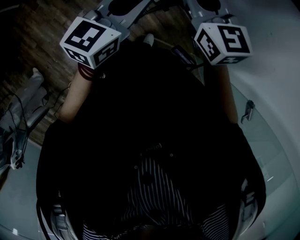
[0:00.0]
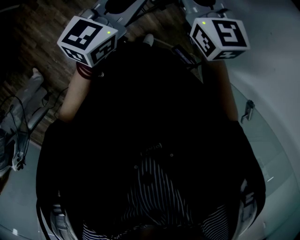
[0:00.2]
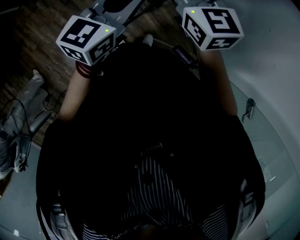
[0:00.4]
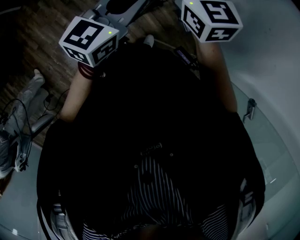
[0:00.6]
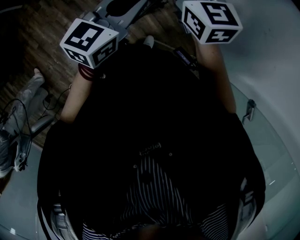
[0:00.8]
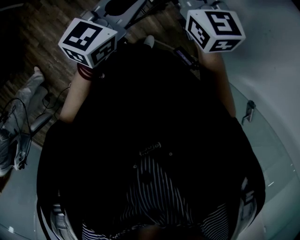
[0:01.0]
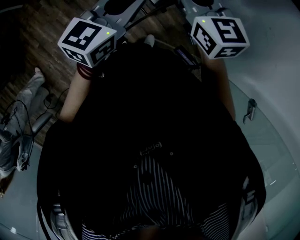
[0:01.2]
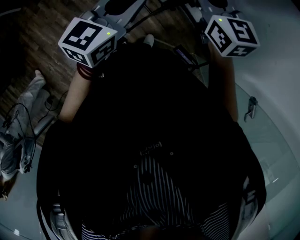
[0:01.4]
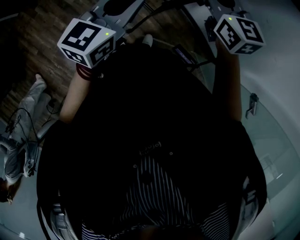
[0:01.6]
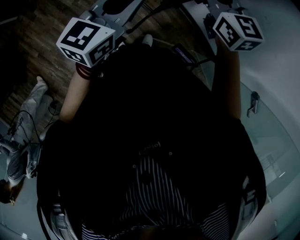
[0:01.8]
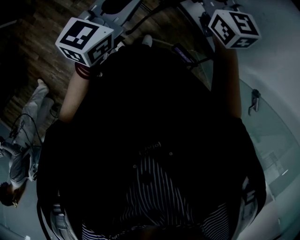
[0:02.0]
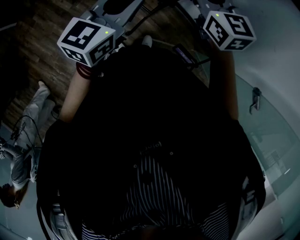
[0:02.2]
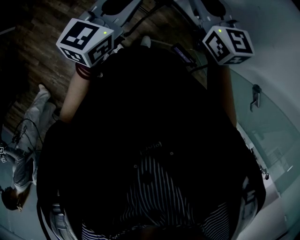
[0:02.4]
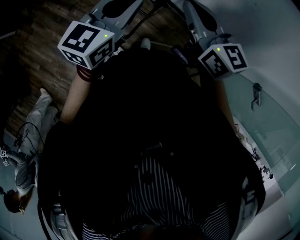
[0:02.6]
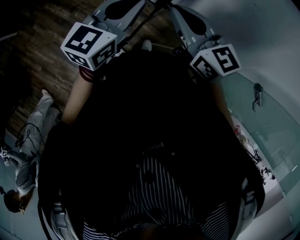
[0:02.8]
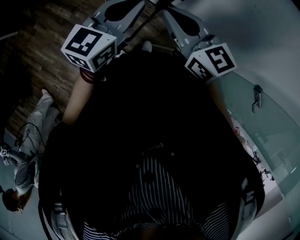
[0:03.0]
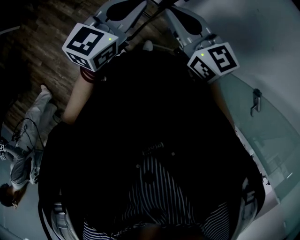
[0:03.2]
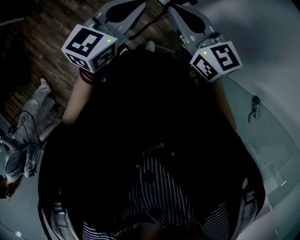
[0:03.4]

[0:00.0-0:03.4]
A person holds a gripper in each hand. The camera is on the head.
0.0 to 1.6 s: The right gripper is displaced to the right and forward by roughly 10 cm.
1.6 to 3.4 s: The right gripper travels backward by about 10 cm.

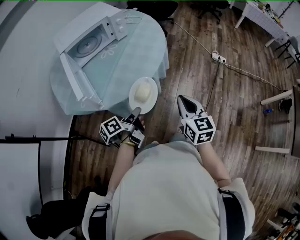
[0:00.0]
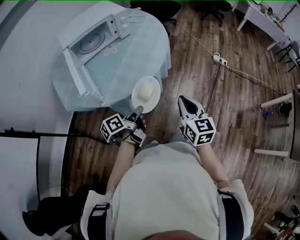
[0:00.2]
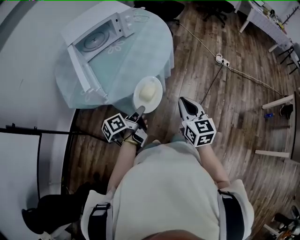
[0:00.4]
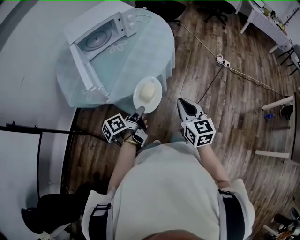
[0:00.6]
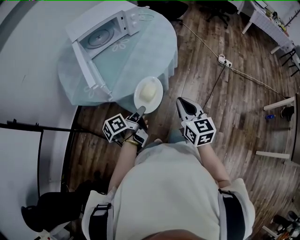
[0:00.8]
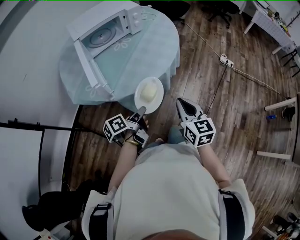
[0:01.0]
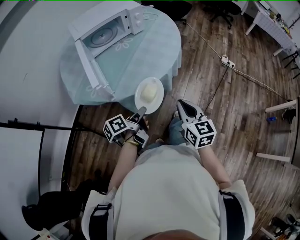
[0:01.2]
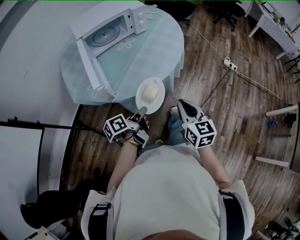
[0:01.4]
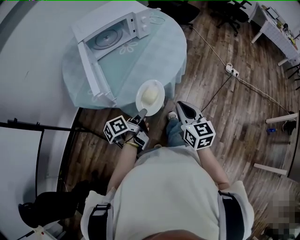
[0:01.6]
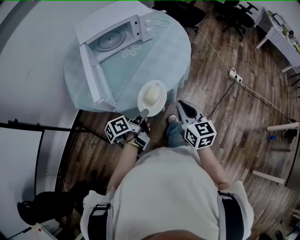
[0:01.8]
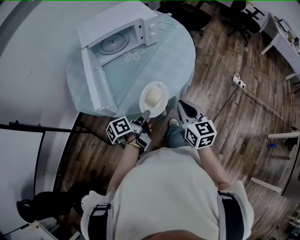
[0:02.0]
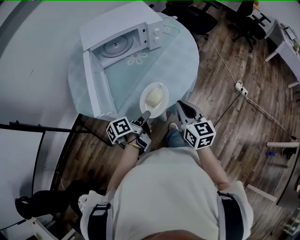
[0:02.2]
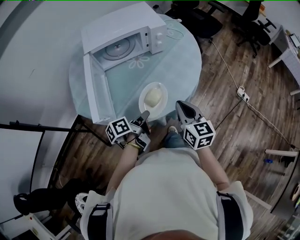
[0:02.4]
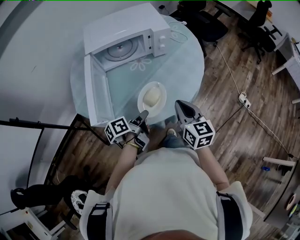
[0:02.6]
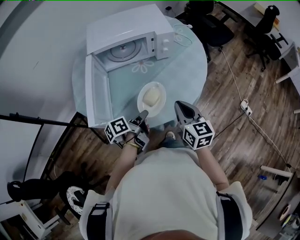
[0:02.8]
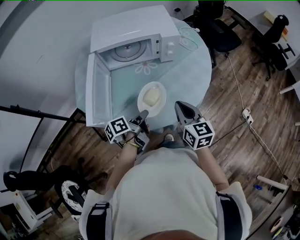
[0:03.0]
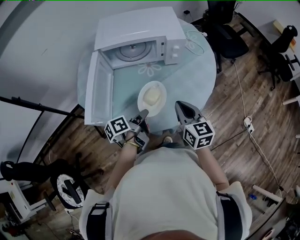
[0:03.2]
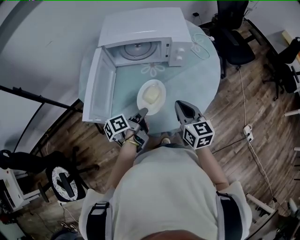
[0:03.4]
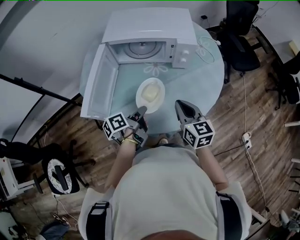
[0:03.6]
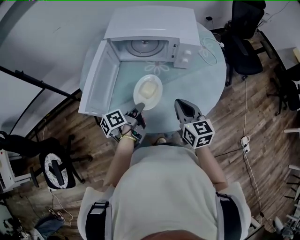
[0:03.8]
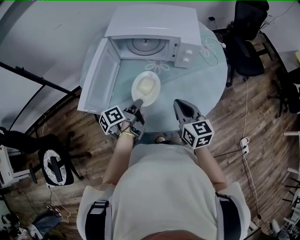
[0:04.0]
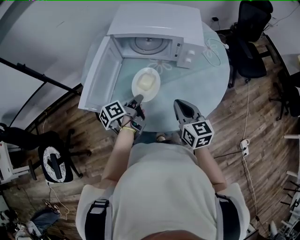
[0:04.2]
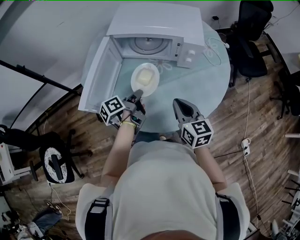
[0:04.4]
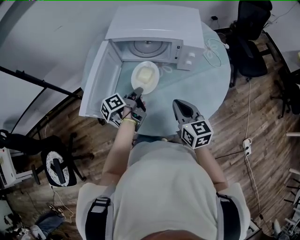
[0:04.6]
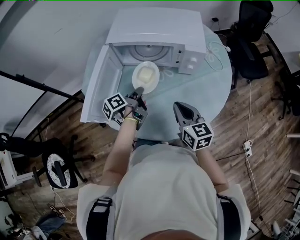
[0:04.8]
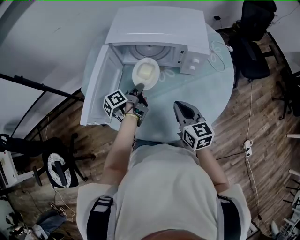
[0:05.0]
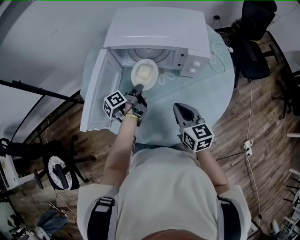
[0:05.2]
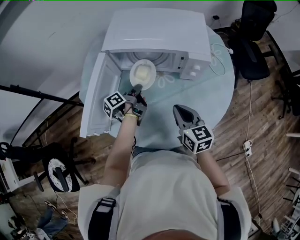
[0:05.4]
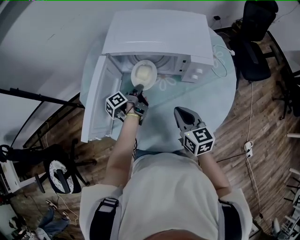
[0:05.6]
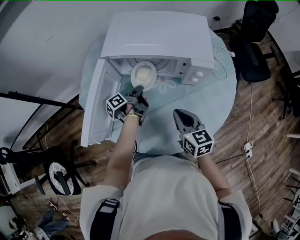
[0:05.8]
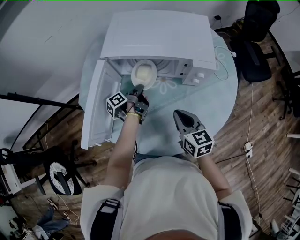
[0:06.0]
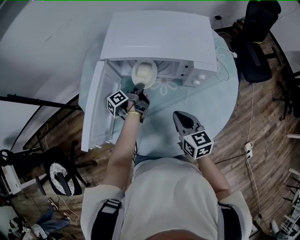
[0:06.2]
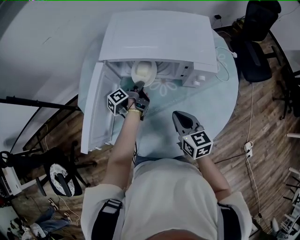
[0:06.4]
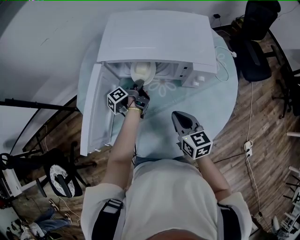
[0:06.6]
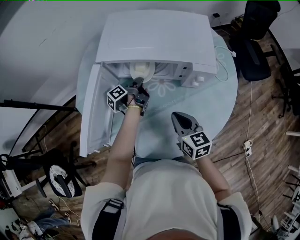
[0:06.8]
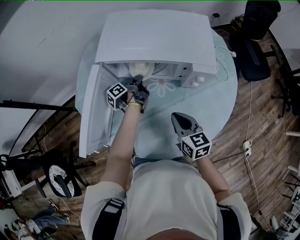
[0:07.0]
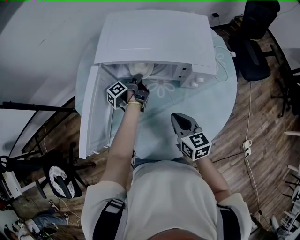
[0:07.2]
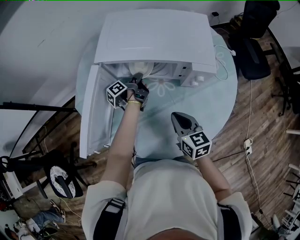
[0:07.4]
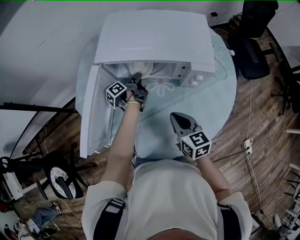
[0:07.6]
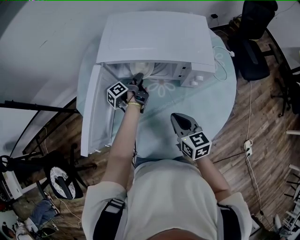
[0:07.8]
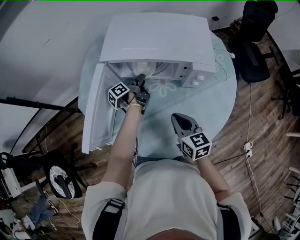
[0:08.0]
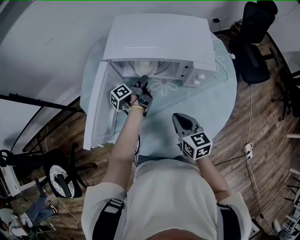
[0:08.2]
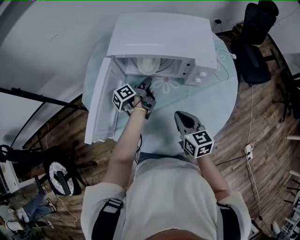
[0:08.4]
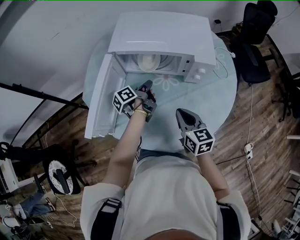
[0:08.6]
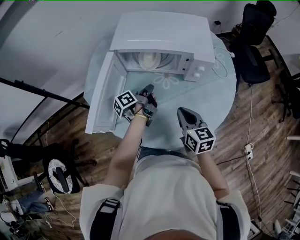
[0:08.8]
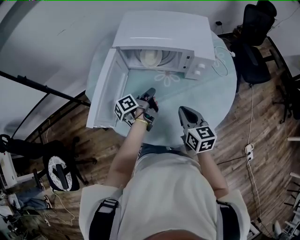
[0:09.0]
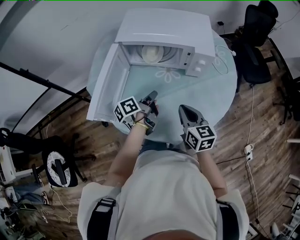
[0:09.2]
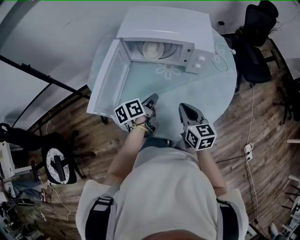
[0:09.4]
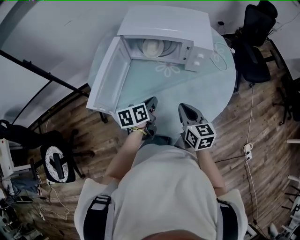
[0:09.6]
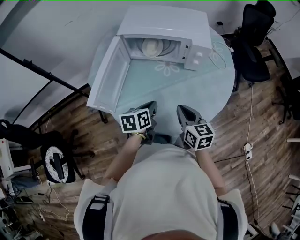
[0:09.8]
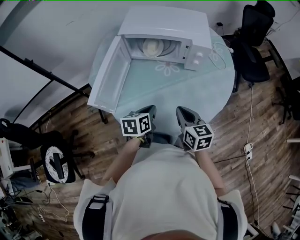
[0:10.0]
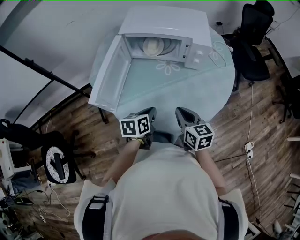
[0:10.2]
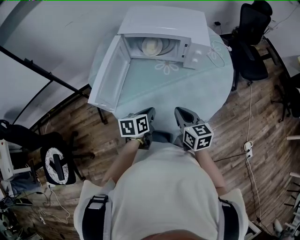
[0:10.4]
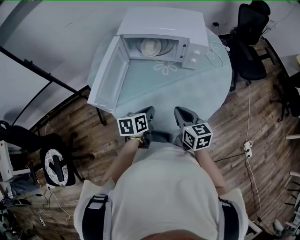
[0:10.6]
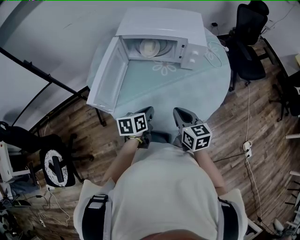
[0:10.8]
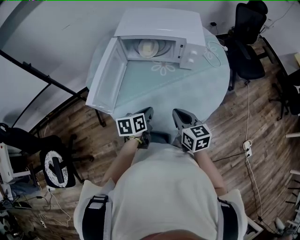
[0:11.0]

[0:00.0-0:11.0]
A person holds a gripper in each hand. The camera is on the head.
0.0 to 1.6 s: The right gripper ends up about 10 cm from where it was.
1.6 to 3.2 s: The right gripper changes place by some 30 cm, and swivels roughly 30 degrees.
3.2 to 4.8 s: The right gripper moves about 10 cm.
4.8 to 6.2 s: The right gripper changes place by approximately 10 cm.
7.8 to 9.4 s: The right gripper ends up roughly 10 cm from where it was.
9.4 to 11.0 s: The right gripper moves approximately 5 cm.

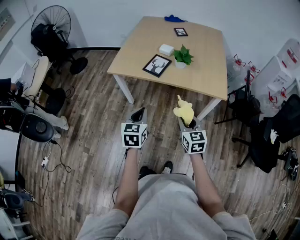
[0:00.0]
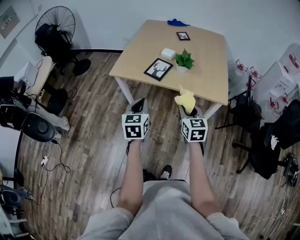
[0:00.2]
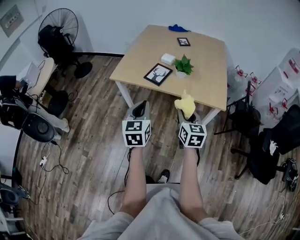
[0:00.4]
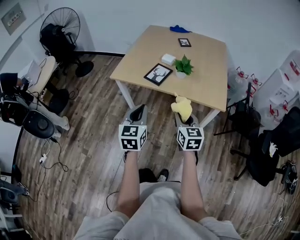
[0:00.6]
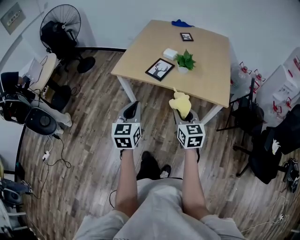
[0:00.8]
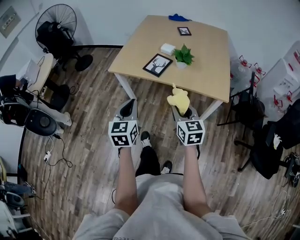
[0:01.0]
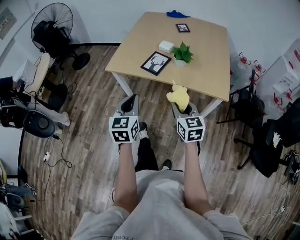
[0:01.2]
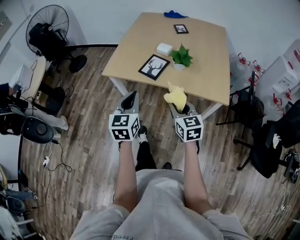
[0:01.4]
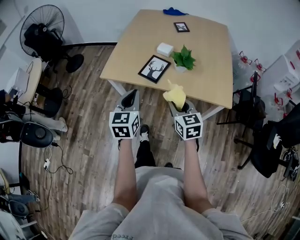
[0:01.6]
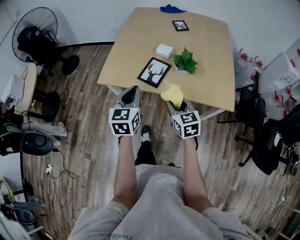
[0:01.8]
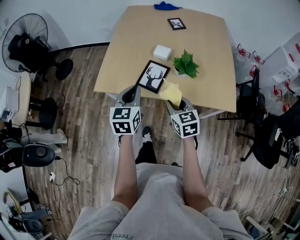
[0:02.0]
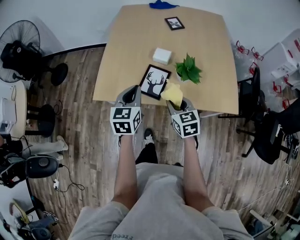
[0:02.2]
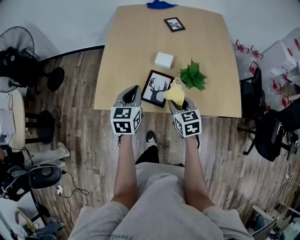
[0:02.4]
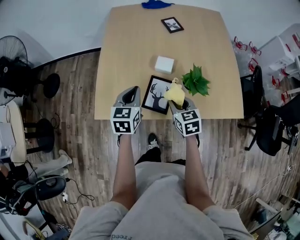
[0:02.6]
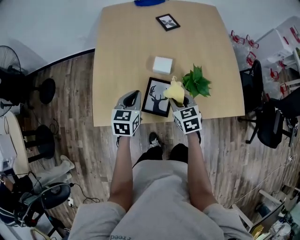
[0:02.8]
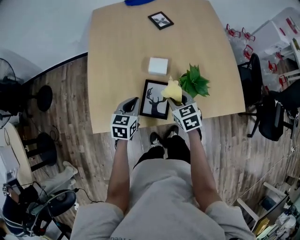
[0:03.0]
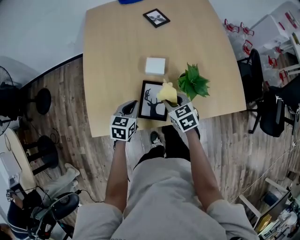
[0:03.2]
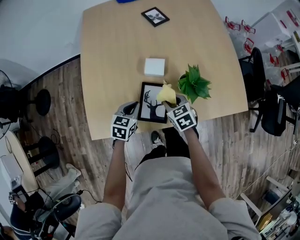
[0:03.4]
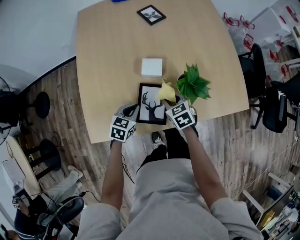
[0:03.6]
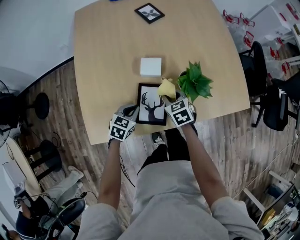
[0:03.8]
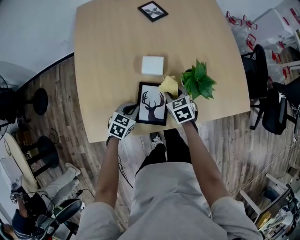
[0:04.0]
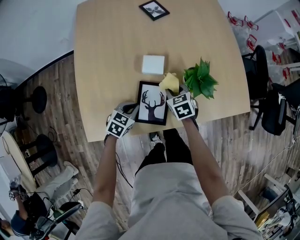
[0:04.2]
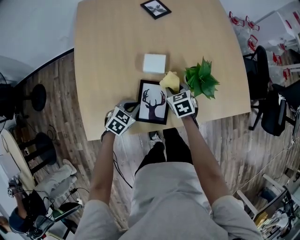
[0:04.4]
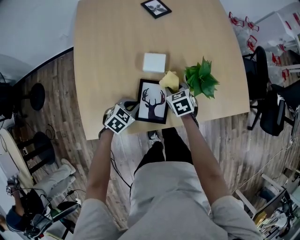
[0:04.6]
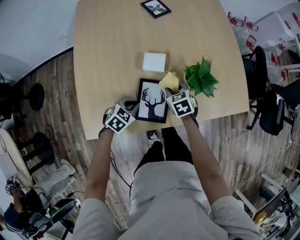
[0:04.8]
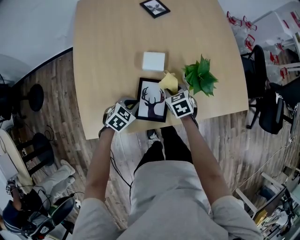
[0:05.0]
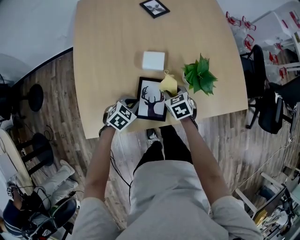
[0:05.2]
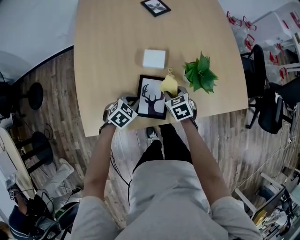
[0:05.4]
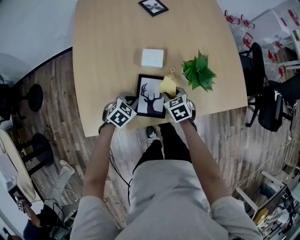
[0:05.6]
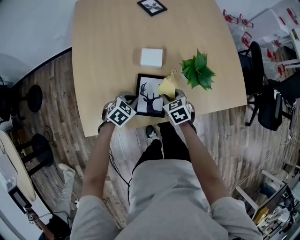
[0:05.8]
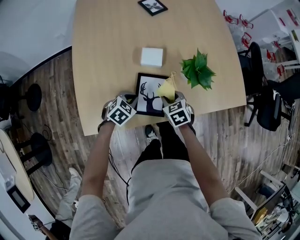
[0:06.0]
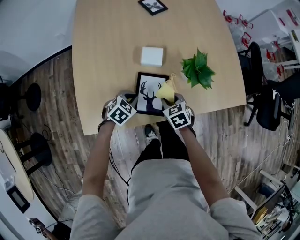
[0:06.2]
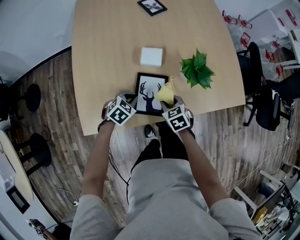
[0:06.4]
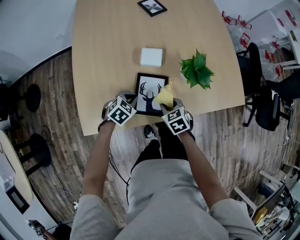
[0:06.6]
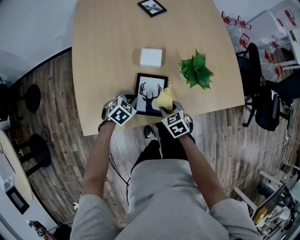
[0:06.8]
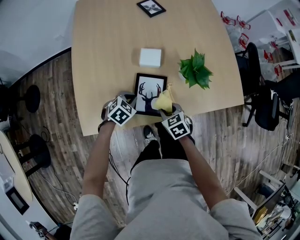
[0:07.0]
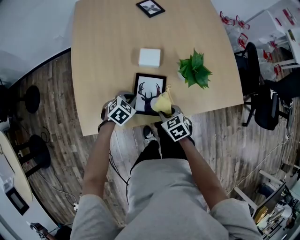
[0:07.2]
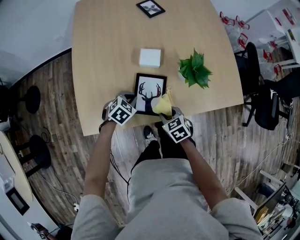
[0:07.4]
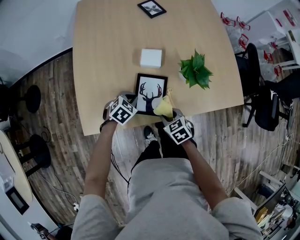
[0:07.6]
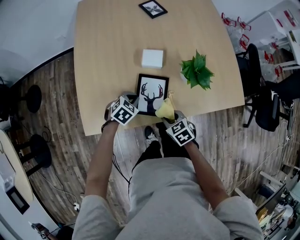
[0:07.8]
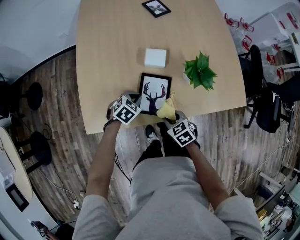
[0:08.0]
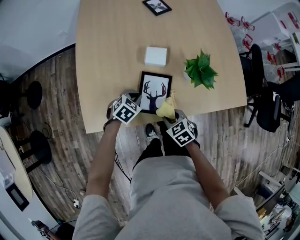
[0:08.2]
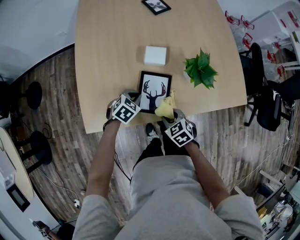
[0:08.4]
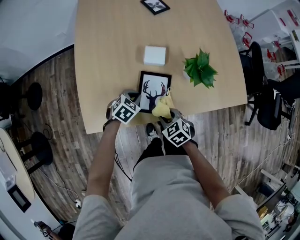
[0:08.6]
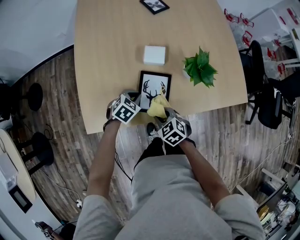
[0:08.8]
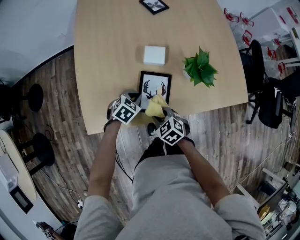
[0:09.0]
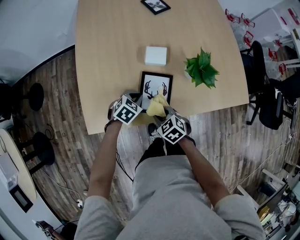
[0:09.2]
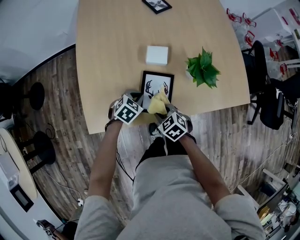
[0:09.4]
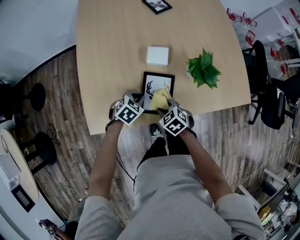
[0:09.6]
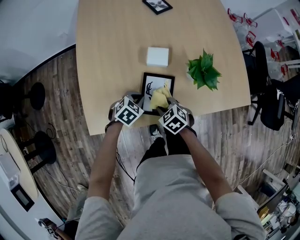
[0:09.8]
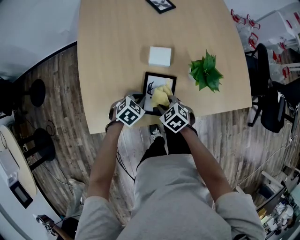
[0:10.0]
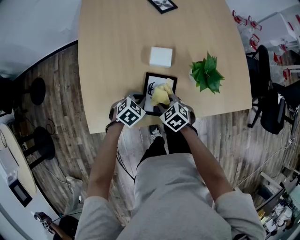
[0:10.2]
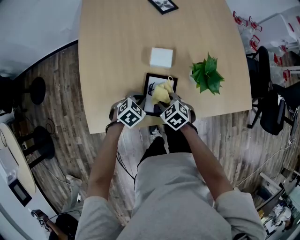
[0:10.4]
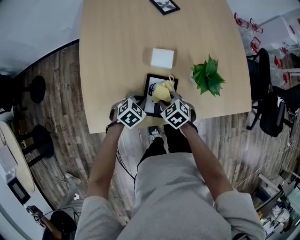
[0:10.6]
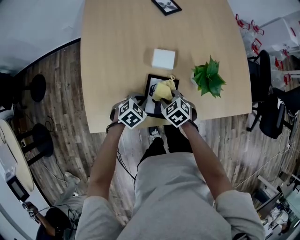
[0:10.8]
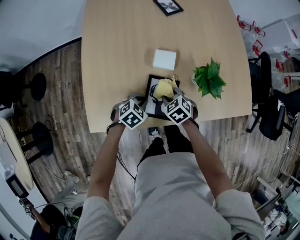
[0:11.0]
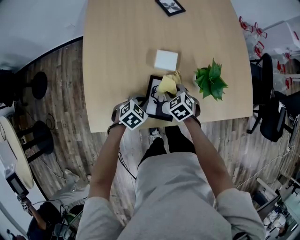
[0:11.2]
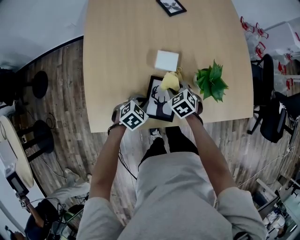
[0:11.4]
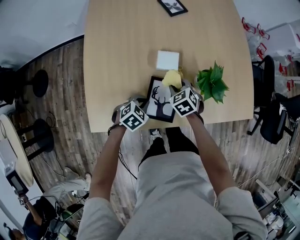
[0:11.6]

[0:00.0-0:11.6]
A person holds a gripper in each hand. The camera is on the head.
0.0 to 1.4 s: The left gripper moves forward and upward, about 10 cm. Meanwhile the right gripper moves forward, some 10 cm.
1.4 to 2.8 s: Both grippers travel together forward, some 40 cm. The right gripper changes its angle by approximately 30 degrees. Meanwhile the left gripper turns by some 30 degrees.
2.8 to 4.4 s: The left gripper goes roughly 20 cm downward, and swivels some 40 degrees; the right gripper travels downward and forward by approximately 15 cm.
4.4 to 5.8 s: The right gripper travels backward by some 5 cm.
5.8 to 7.2 s: The right gripper goes approximately 10 cm backward.
7.2 to 8.8 s: The right gripper changes place by about 5 cm.
8.8 to 10.2 s: The right gripper travels forward by about 5 cm.
10.2 to 11.6 s: The right gripper heads forward, covering some 10 cm.
